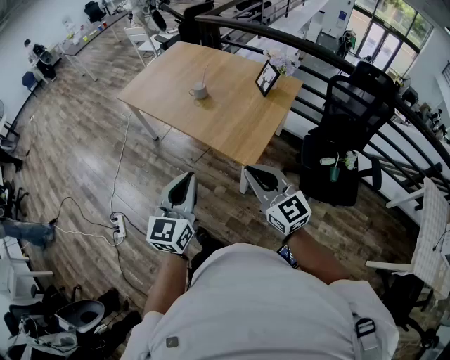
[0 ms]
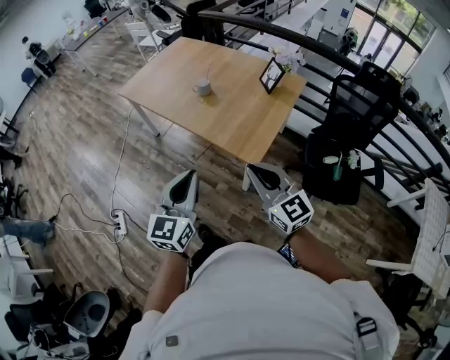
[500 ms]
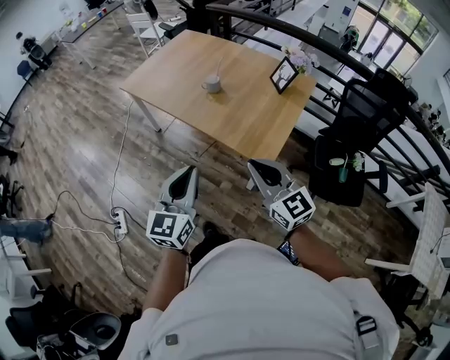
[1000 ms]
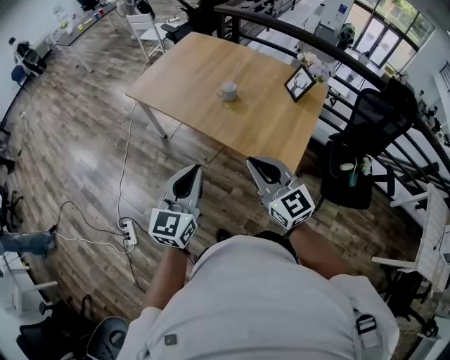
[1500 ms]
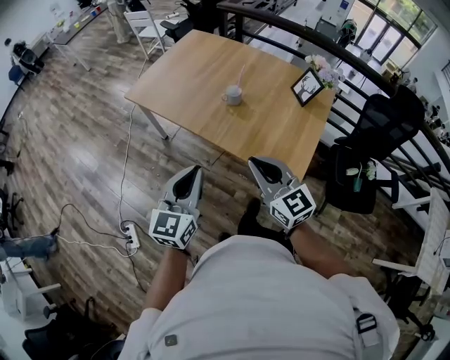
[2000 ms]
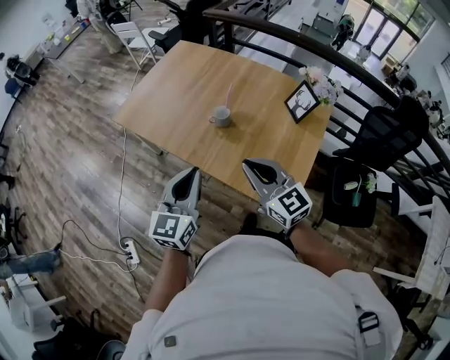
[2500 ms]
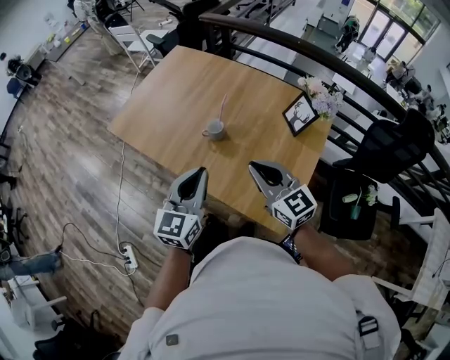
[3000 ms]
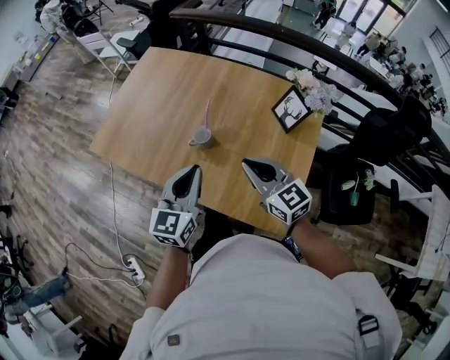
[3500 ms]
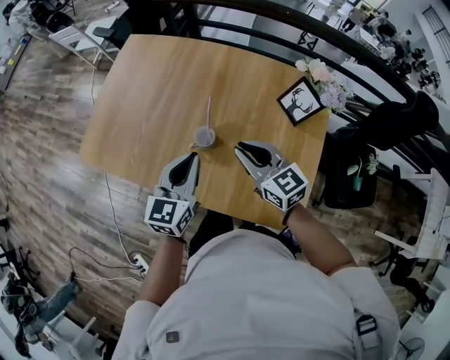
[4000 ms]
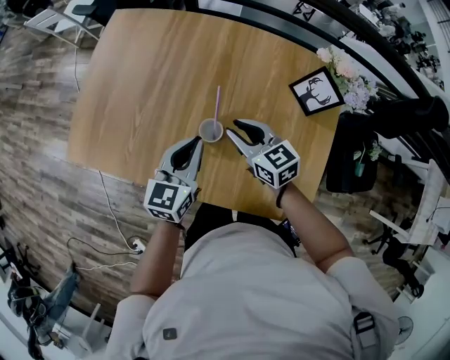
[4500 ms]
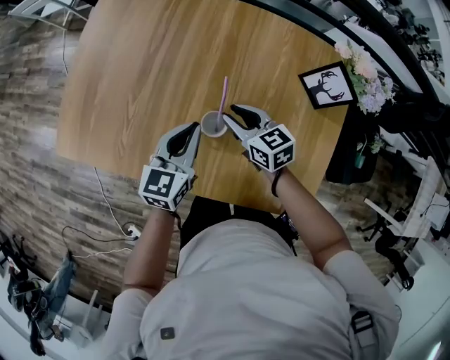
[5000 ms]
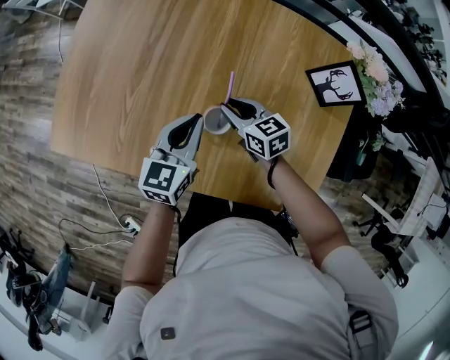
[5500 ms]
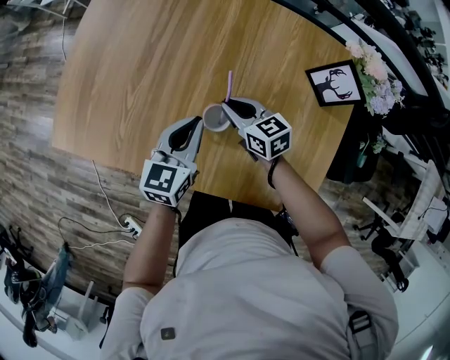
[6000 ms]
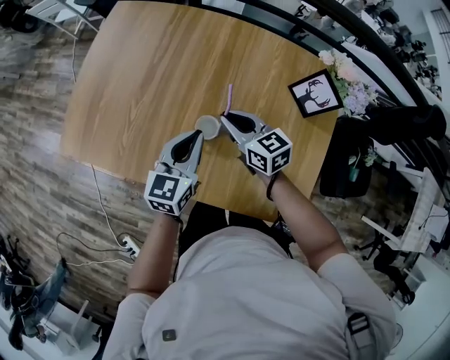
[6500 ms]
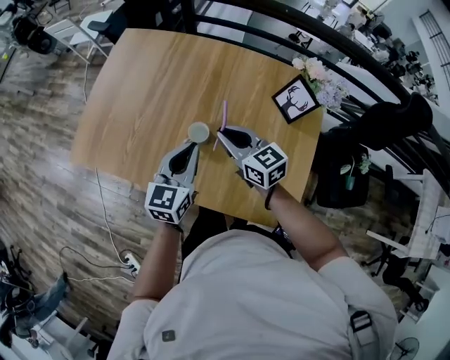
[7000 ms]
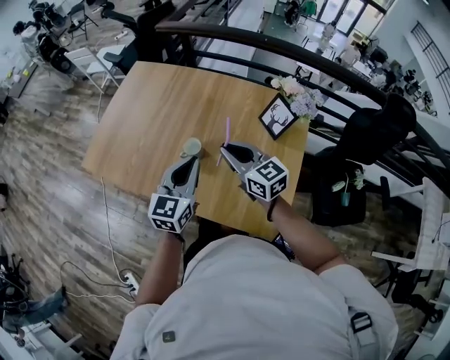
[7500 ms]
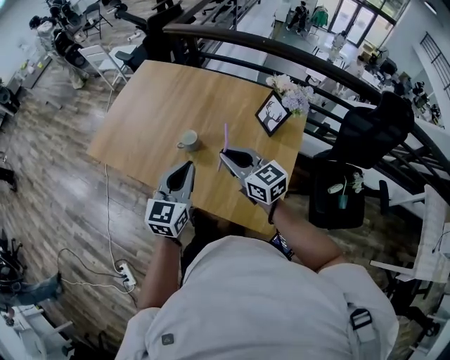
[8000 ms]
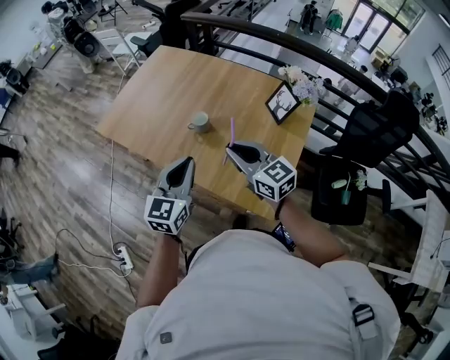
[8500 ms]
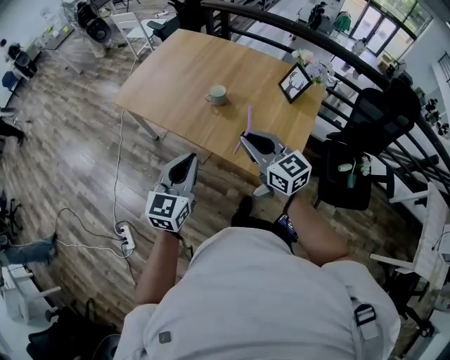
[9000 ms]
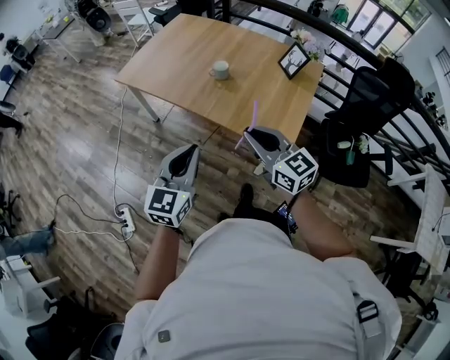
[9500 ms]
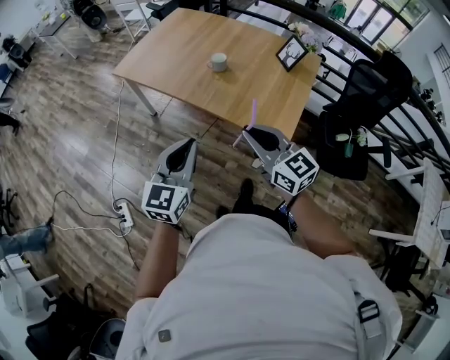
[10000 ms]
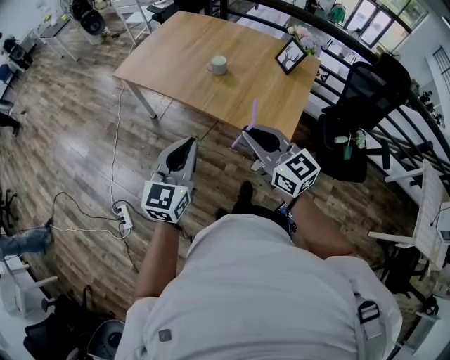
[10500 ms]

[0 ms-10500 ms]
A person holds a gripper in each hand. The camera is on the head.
0 ms to 2000 ms: The two grippers go some 30 cm forward and to the left.
2000 ms to 4000 ms: Both grippers are carried forward, some 40 cm.
4000 ms to 6500 ms: The right gripper travels downward, forward and to the left by about 15 cm; the left gripper shifts approximately 10 cm downward and forward.
6500 ms to 8500 ms: Both grippers travel together backward and upward, roughly 35 cm. The right gripper rotates roughly 20 degrees; the left gripper rotates approximately 20 degrees.
8500 ms to 10500 ms: Both grippers move backward and to the left, roughly 30 cm.

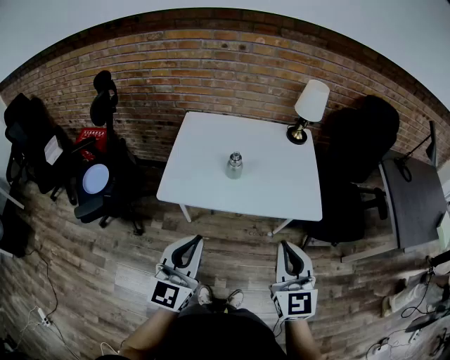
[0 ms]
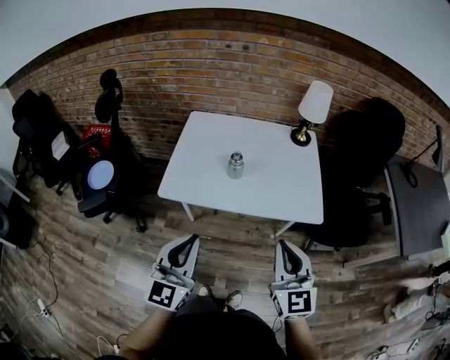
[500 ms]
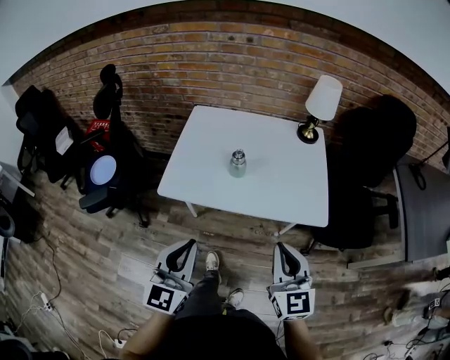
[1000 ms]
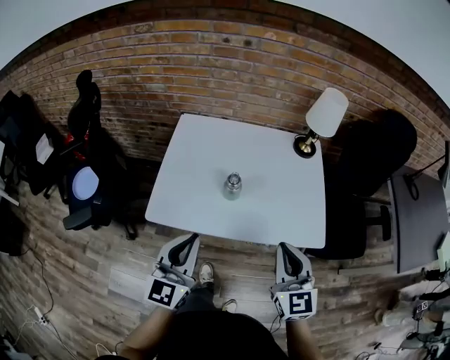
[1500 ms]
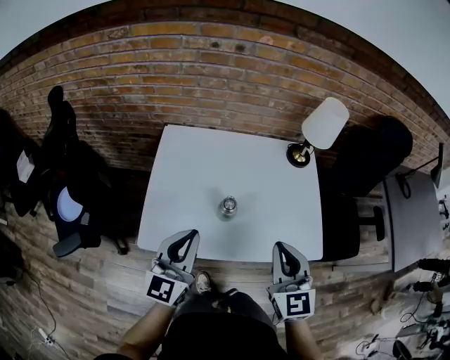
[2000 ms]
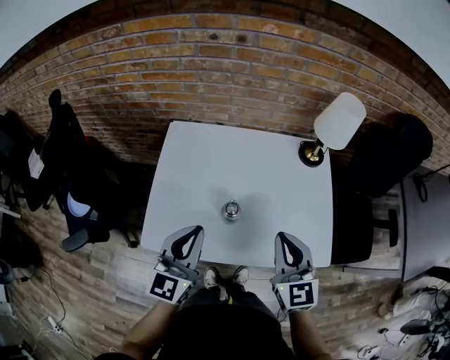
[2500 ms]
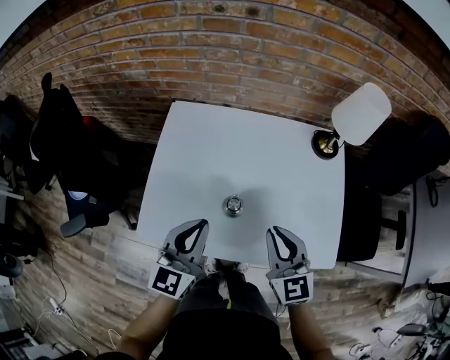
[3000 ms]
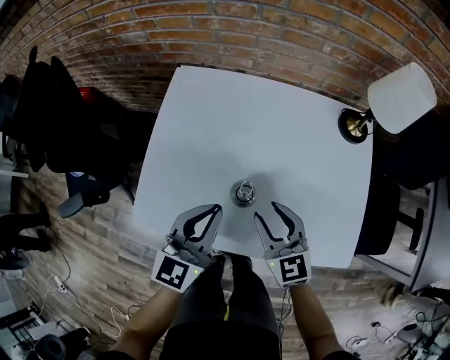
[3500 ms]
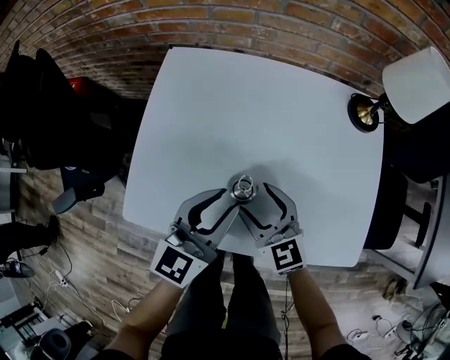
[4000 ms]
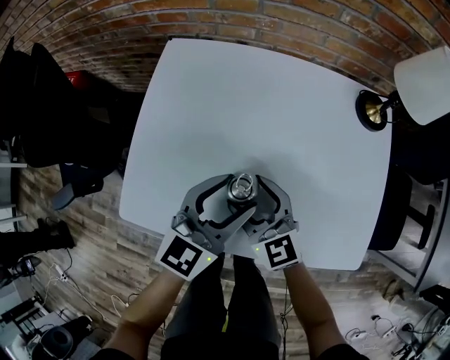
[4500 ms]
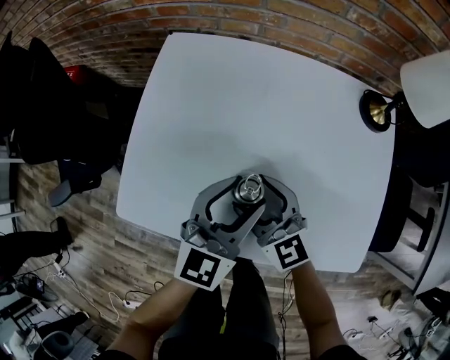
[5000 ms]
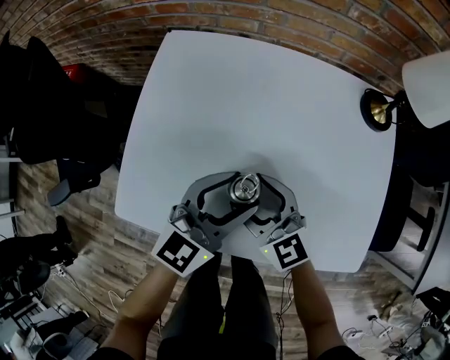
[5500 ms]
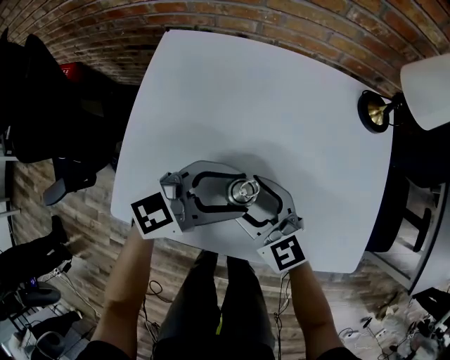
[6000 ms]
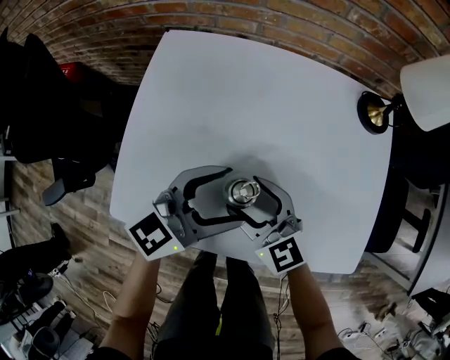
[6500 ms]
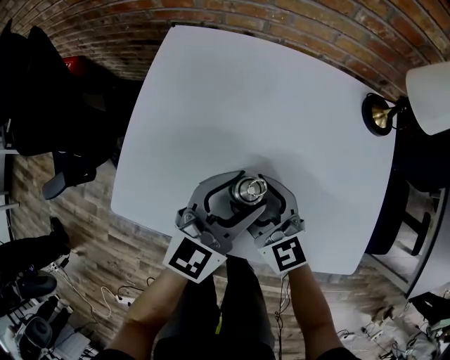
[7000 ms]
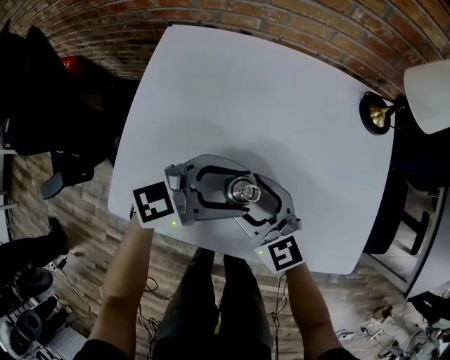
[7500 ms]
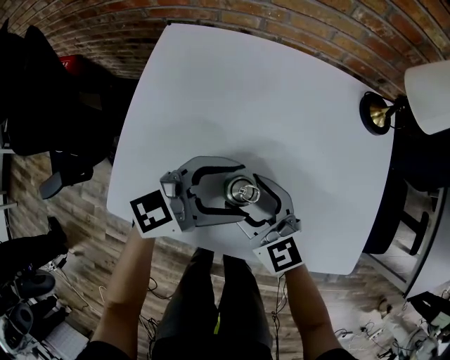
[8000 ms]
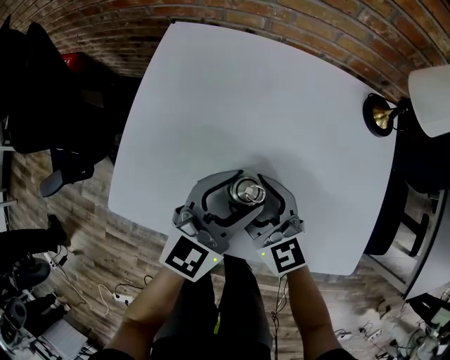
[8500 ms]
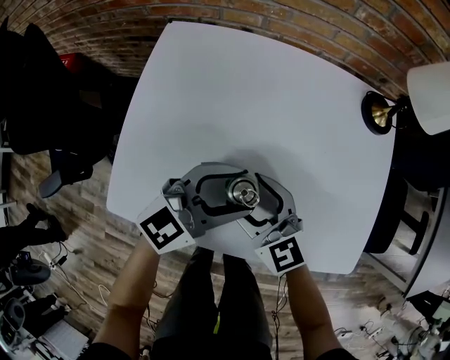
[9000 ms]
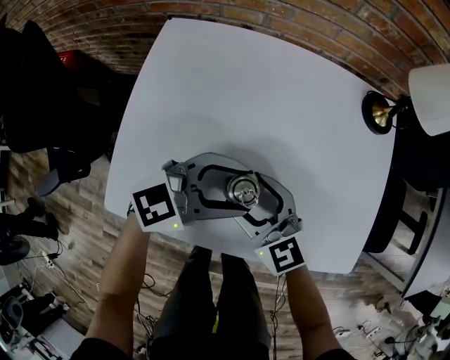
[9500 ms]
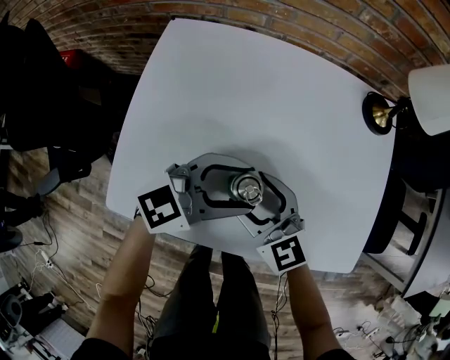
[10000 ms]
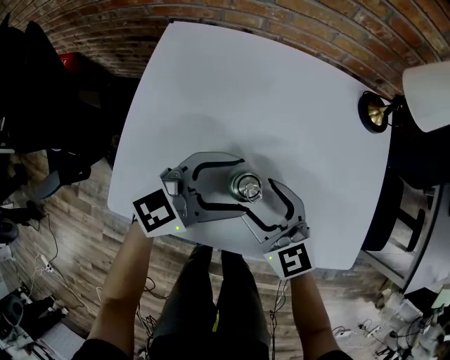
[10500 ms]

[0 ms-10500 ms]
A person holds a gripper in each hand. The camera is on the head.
0 ms to 2000 ms: Both grippers travel together forward, some 25 cm.
2000 ms to 4000 ms: The left gripper is displaced downward, forward and to the right by some 20 cm; the right gripper goes about 30 cm downward and forward, turns by about 30 degrees, and opens.
4000 ms to 6500 ms: The left gripper swivels some 30 degrees, and opens up.
6500 ms to 8500 ms: The left gripper swivels about 20 degrees.
8500 ms to 10500 ms: The left gripper turns by some 30 degrees.

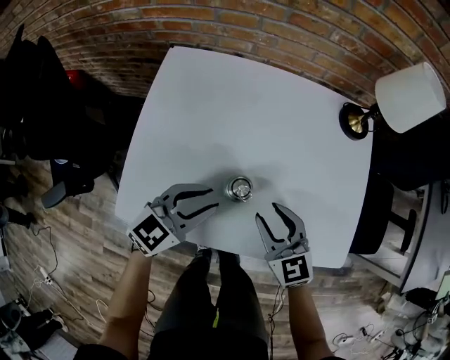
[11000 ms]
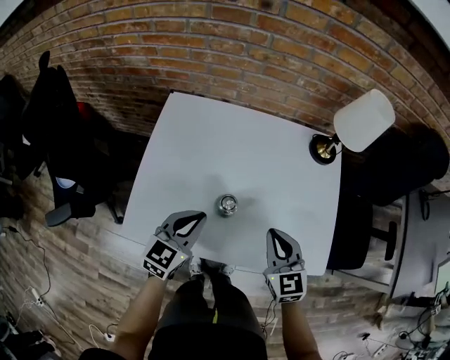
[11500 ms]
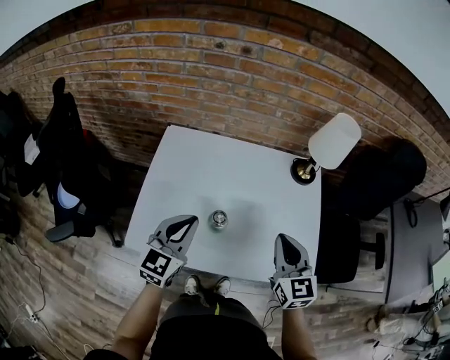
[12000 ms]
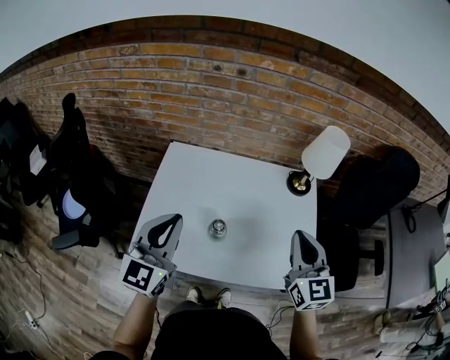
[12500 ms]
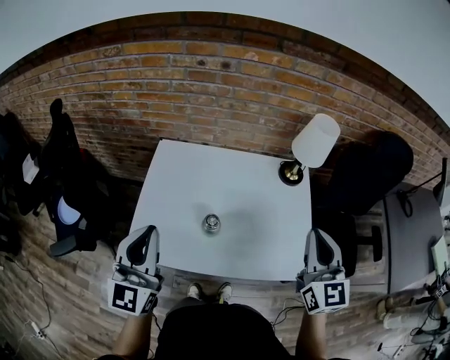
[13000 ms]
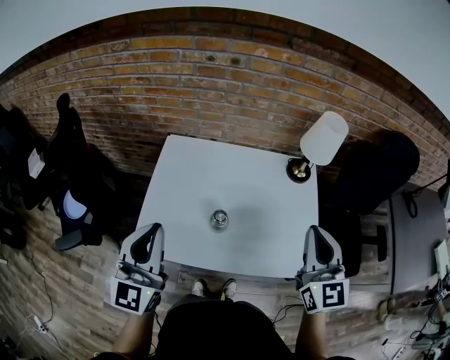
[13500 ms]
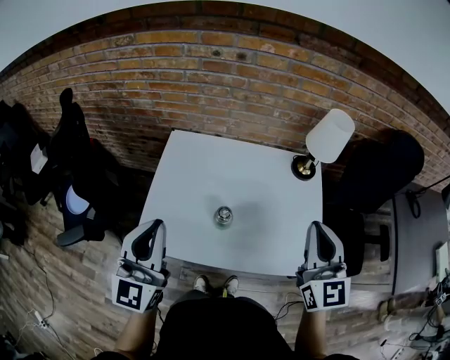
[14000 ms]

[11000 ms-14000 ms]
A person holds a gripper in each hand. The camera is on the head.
11000 ms to 12500 ms: The right gripper heads upward and to the right, covering roughly 30 cm, rotates about 30 degrees, and closes; the left gripper goes some 30 cm upward, turns by some 40 degrees, and closes.
12500 ms to 14000 ms: The left gripper heads backward, covering roughly 5 cm, while the right gripper is displaced upward by roughly 5 cm.

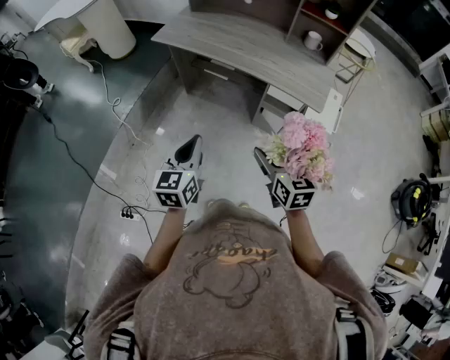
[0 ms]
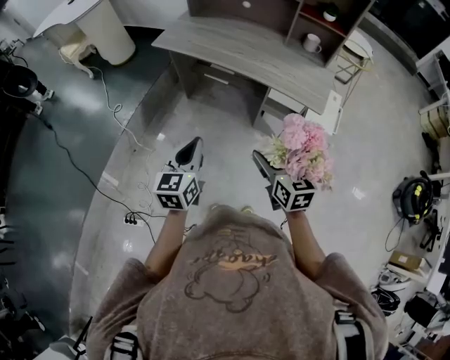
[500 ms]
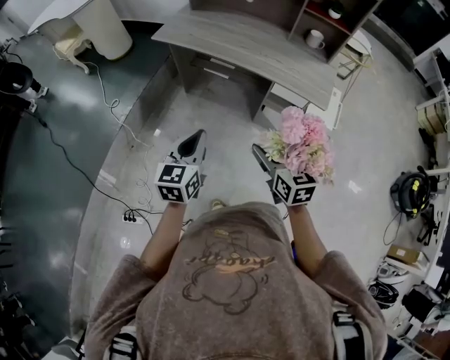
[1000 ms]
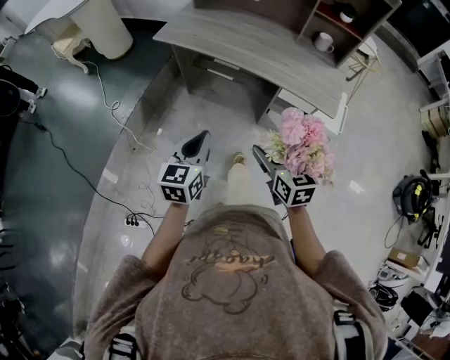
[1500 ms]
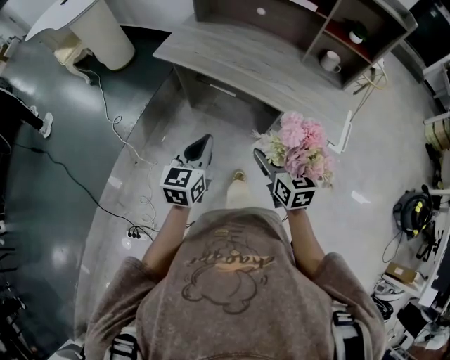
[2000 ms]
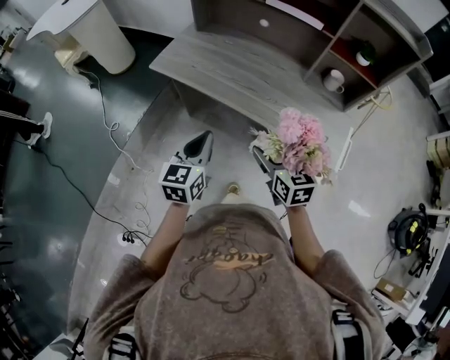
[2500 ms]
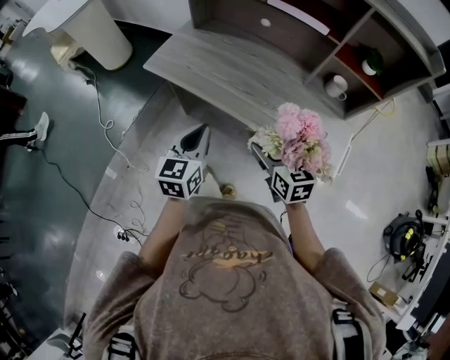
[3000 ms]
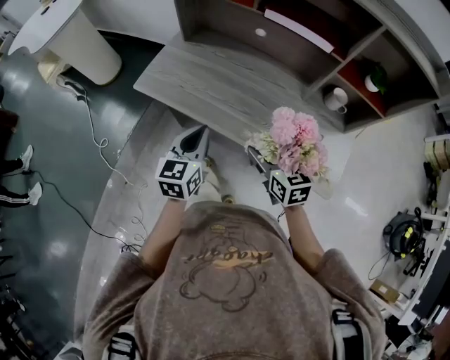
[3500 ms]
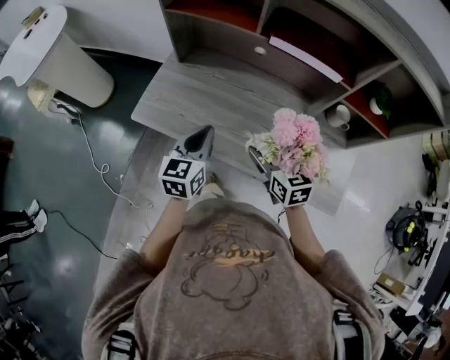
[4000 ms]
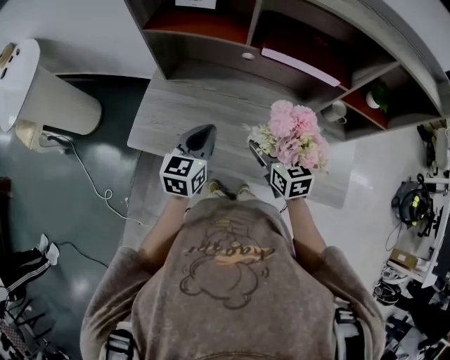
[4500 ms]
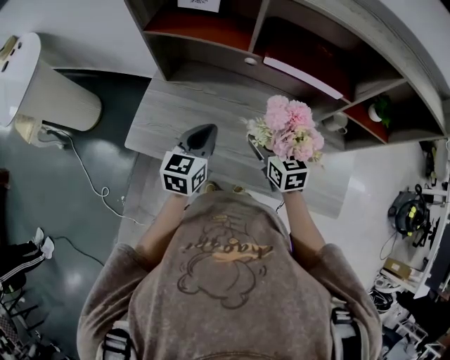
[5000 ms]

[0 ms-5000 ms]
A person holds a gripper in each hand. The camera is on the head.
0 ms to 2500 ms: Both grippers move forward, some 30 cm.
2500 ms to 5000 ms: The grippers both shift forward by some 40 cm.
